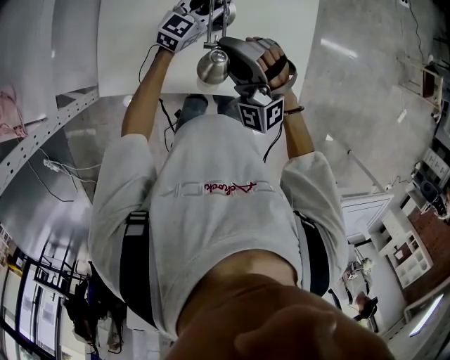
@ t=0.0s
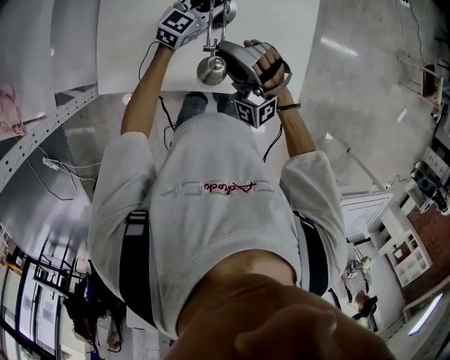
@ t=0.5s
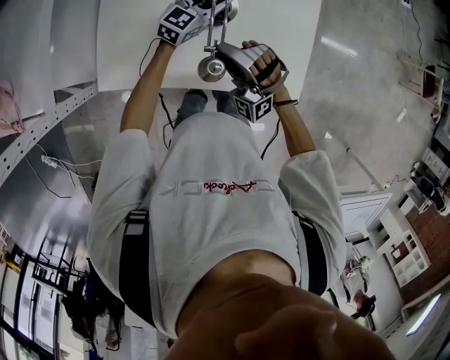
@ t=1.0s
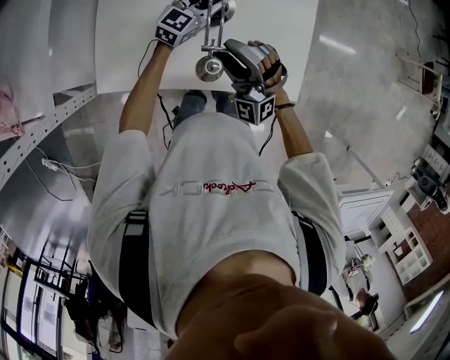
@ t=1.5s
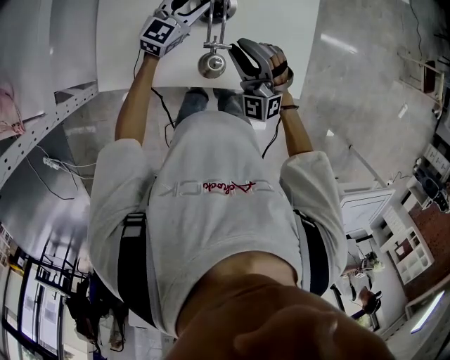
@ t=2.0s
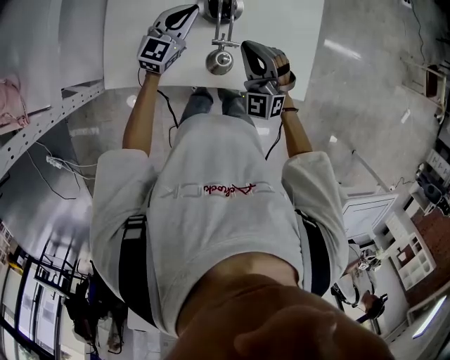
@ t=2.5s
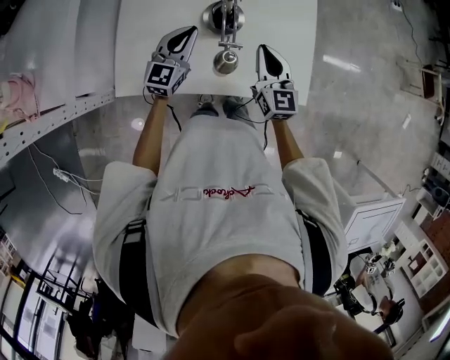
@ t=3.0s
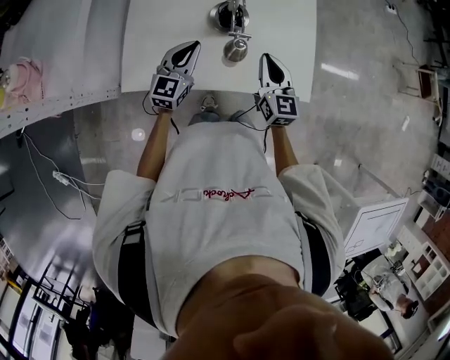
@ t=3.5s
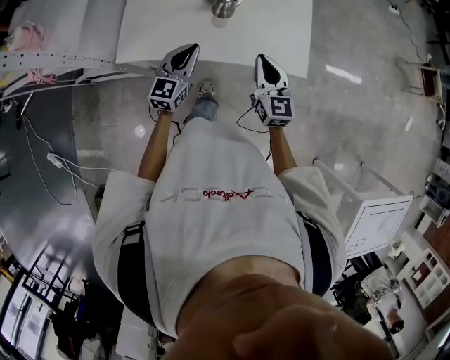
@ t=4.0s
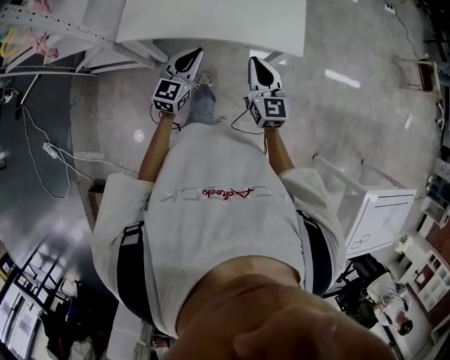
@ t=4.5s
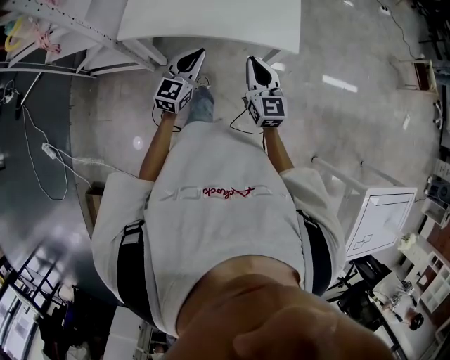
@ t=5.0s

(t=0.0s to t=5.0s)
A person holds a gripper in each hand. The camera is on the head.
t=0.0s - t=2.5s: The right gripper travels downward and to the right by roughly 10 cm, turns by approximately 20 degrees, and closes, while the left gripper is displaced to the left and backward by some 10 cm, and closes up.
t=2.5s - t=5.0s: The two grippers go roughly 30 cm backward. The right gripper rotates around the line of its fingers by about 50 degrees, clockwise from behind.

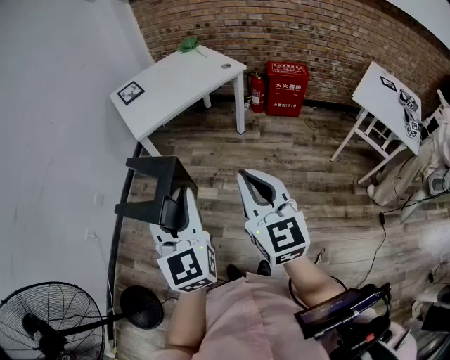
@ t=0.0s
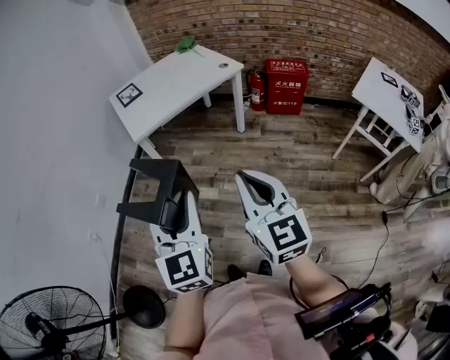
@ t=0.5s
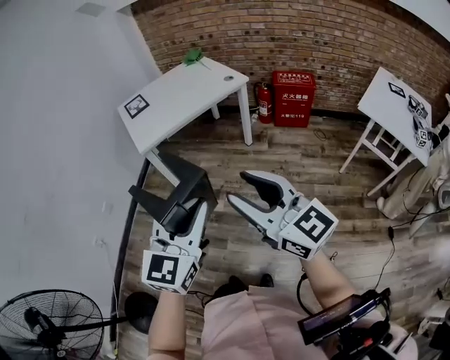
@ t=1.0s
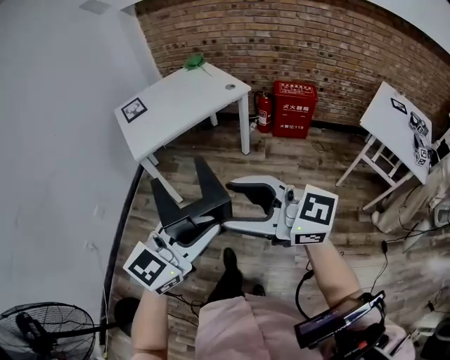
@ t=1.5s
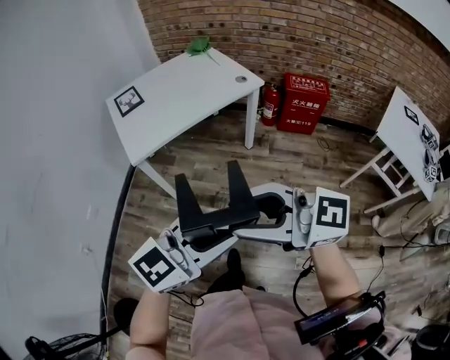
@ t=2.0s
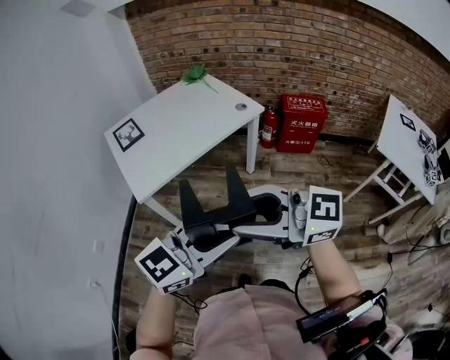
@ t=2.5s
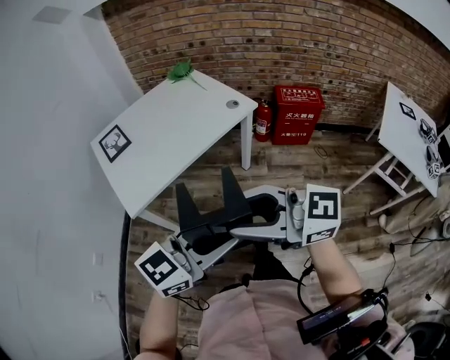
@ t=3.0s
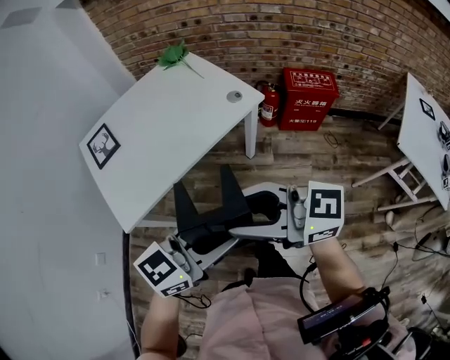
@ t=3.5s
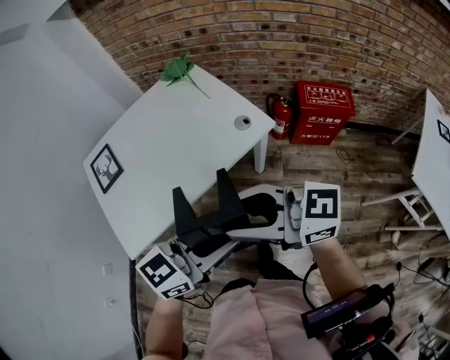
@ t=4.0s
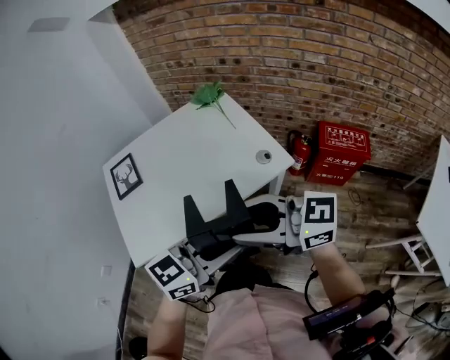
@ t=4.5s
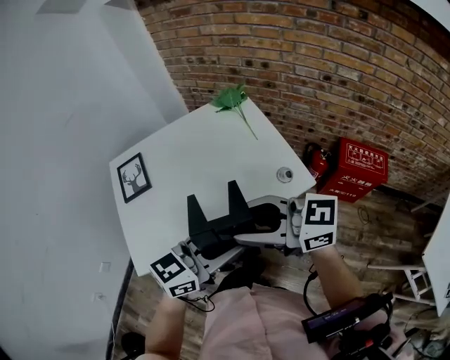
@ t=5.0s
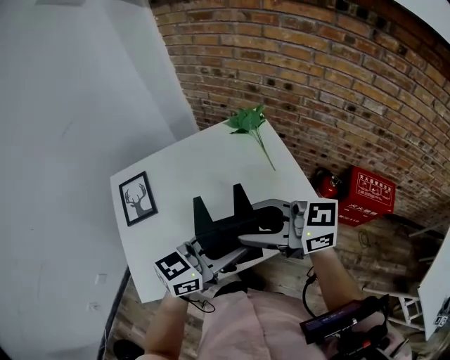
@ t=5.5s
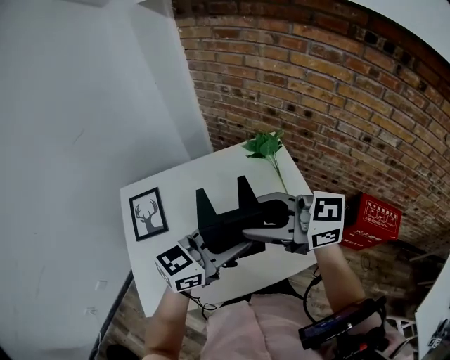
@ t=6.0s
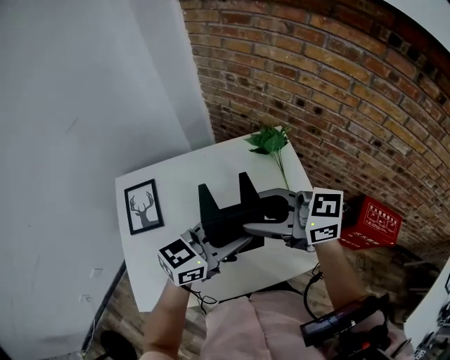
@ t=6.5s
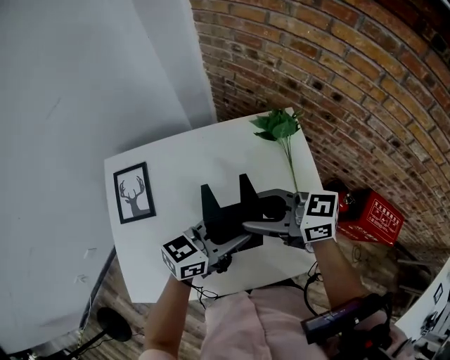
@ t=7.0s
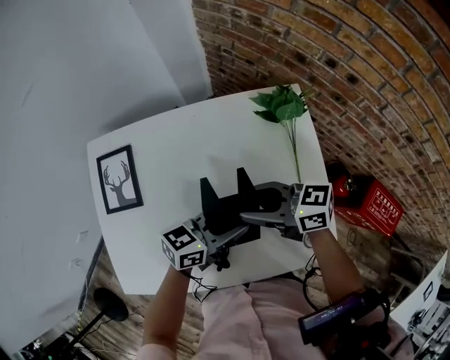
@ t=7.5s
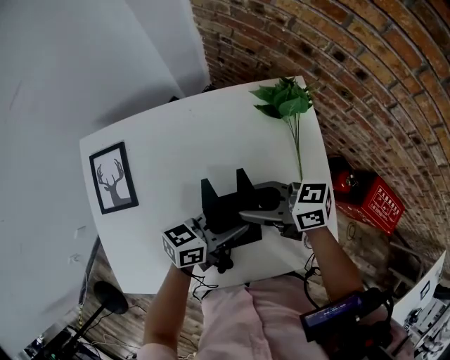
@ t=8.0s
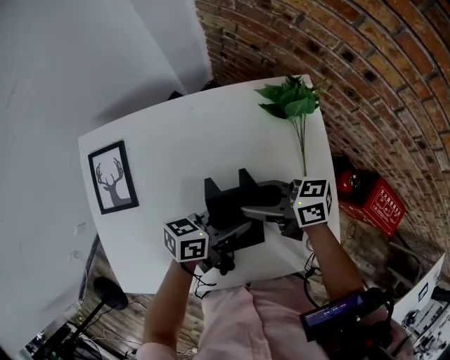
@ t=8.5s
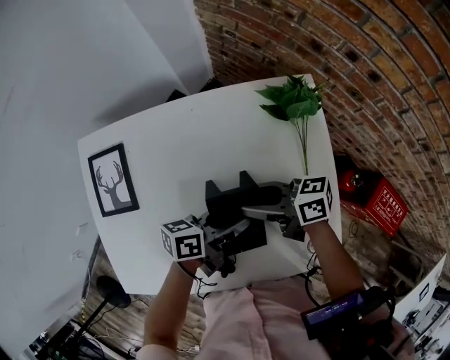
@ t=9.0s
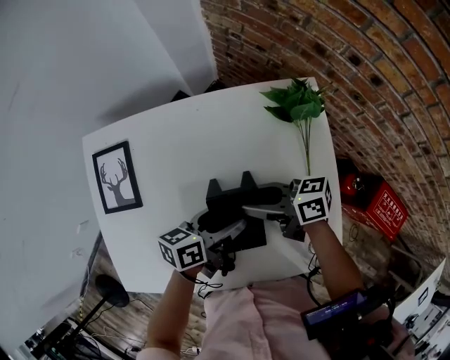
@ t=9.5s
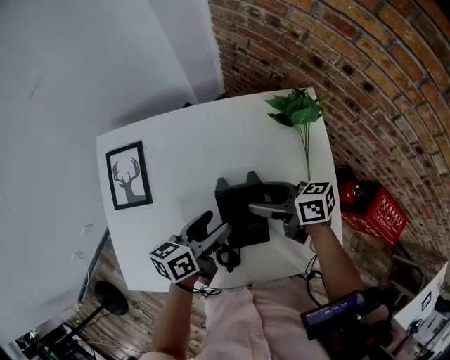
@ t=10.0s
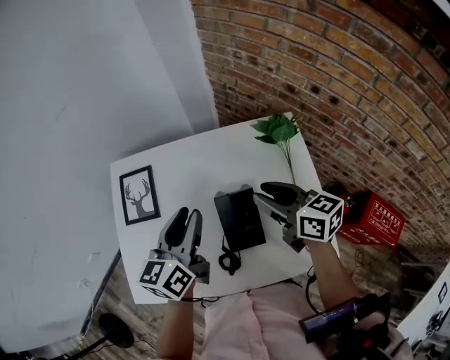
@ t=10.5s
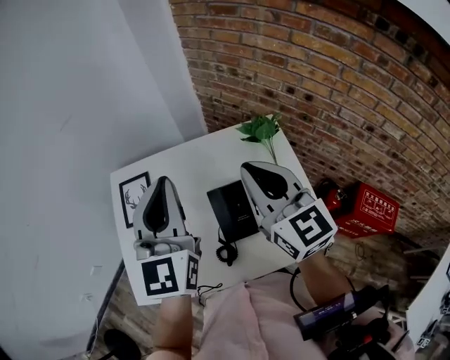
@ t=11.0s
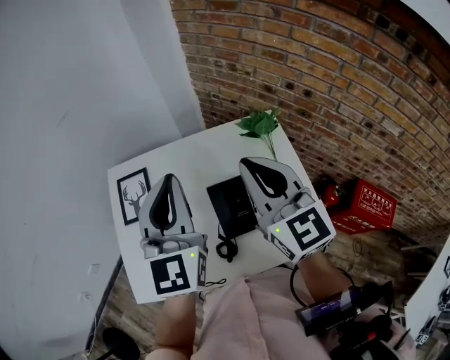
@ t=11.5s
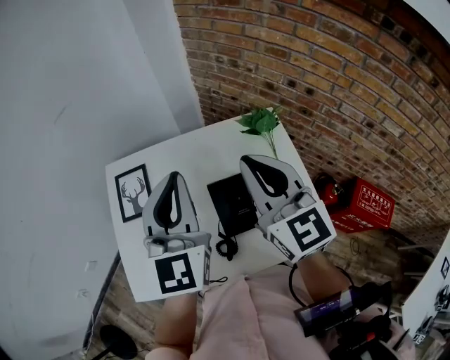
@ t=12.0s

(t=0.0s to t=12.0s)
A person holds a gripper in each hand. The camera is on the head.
t=0.0s - t=2.0s: The right gripper shifts by approximately 15 cm, swivels some 60 degrees, and opens up; the left gripper ends up some 20 cm from where it was, and changes its angle by some 60 degrees.
t=2.0s - t=4.0s: The pair of grippers is taken about 40 cm.
t=4.0s - t=6.0s: The right gripper shifts by some 35 cm. Meanwhile the left gripper moves some 35 cm.
t=6.0s - t=8.0s: Both grippers travel together downward, roughly 25 cm. The right gripper rotates approximately 40 degrees. The left gripper swivels approximately 40 degrees.
t=8.0s - t=10.0s: The right gripper opens its fingers, while the left gripper moves some 10 cm, rotates about 30 degrees, and opens up.
t=10.0s - t=12.0s: The two grippers go roughly 30 cm upward. The right gripper turns by approximately 70 degrees, and closes. The left gripper swivels about 70 degrees, and closes up.

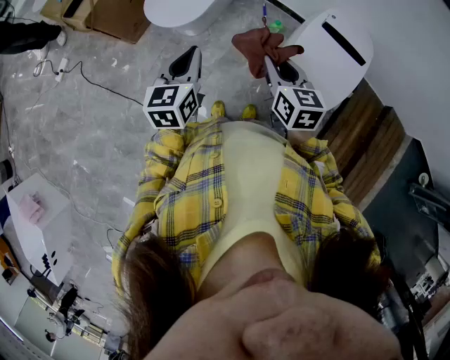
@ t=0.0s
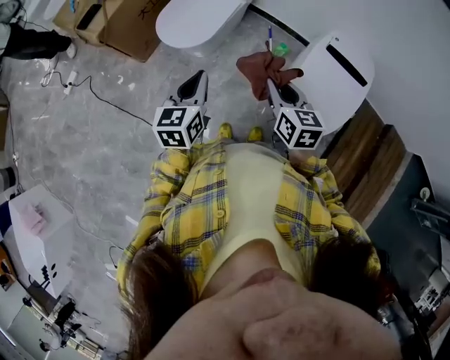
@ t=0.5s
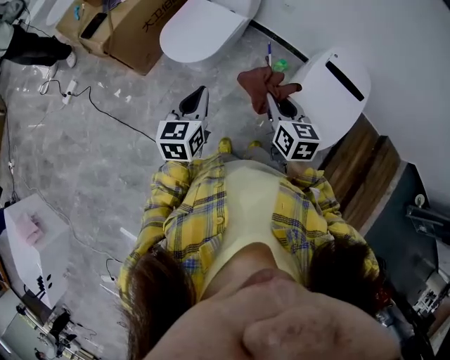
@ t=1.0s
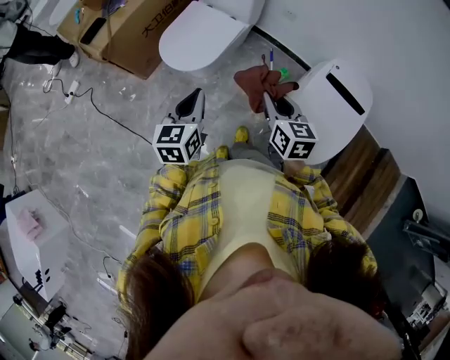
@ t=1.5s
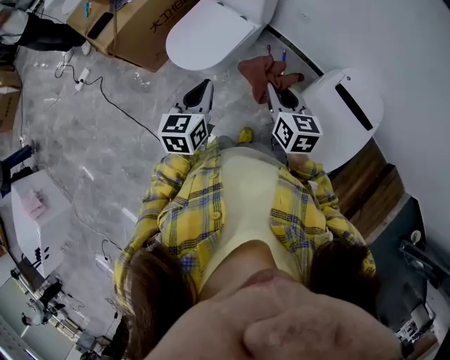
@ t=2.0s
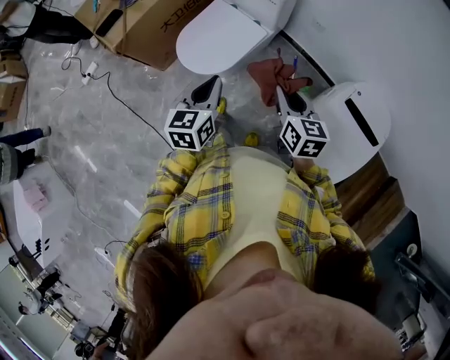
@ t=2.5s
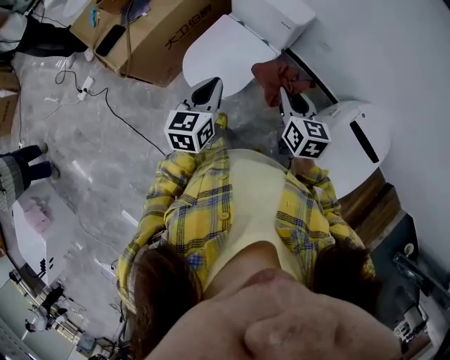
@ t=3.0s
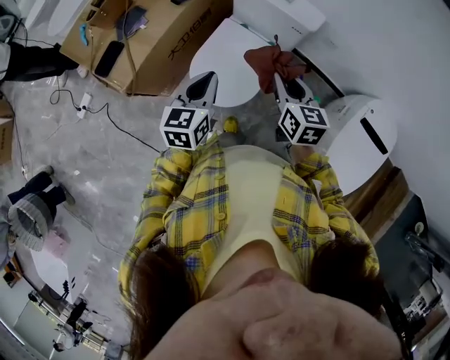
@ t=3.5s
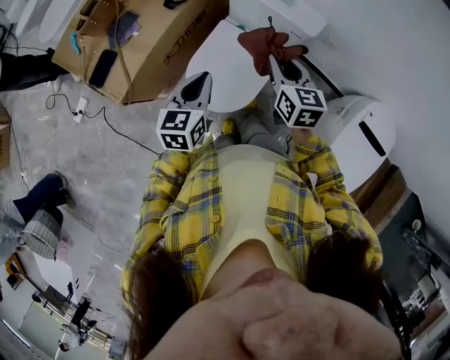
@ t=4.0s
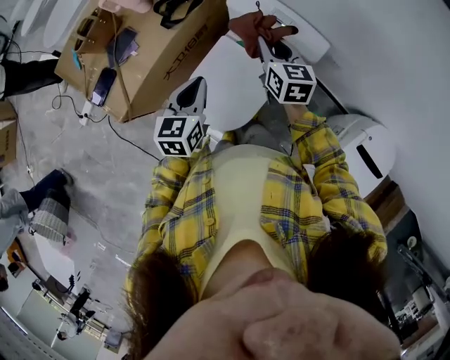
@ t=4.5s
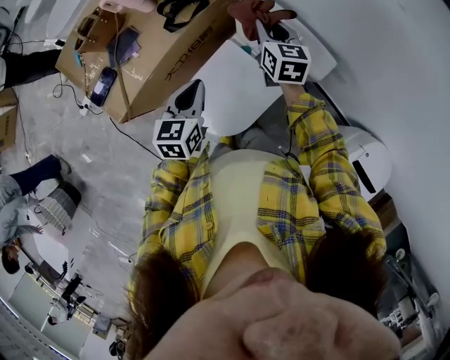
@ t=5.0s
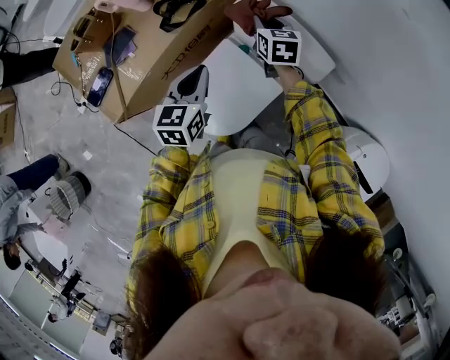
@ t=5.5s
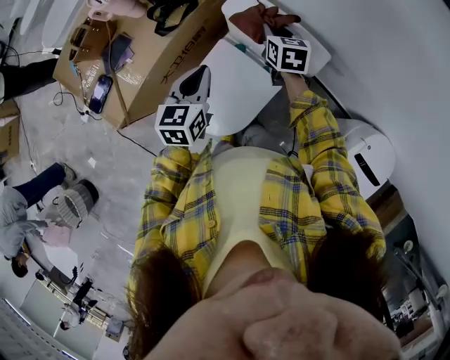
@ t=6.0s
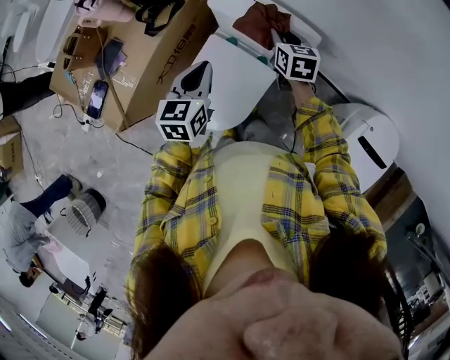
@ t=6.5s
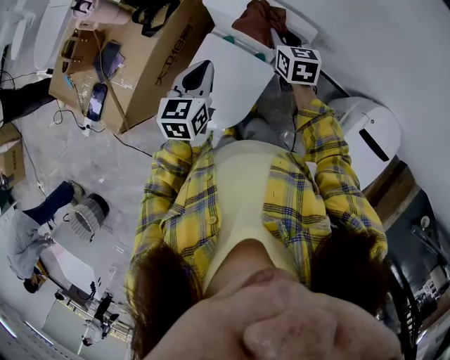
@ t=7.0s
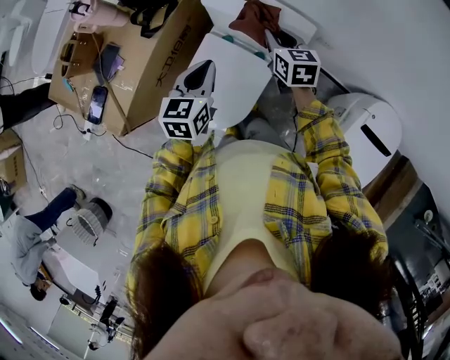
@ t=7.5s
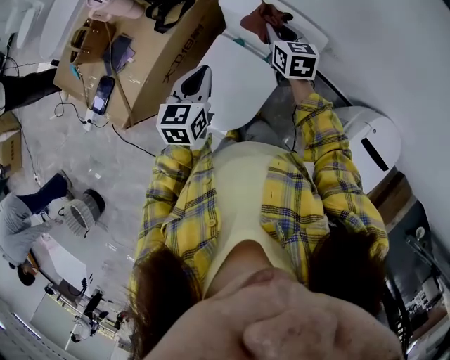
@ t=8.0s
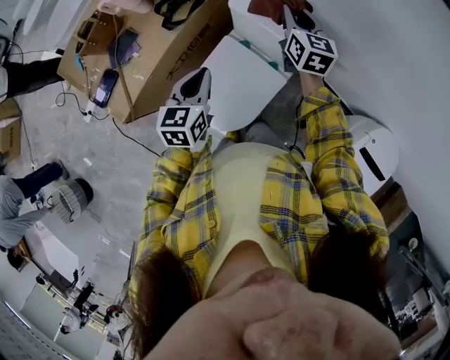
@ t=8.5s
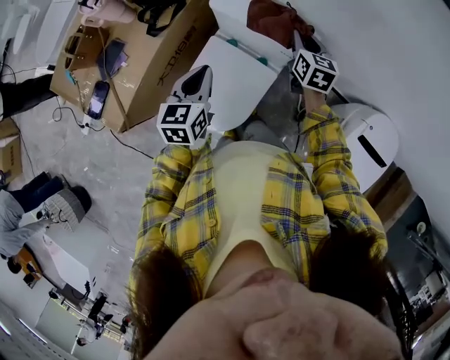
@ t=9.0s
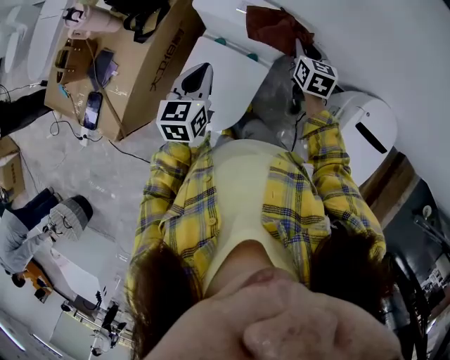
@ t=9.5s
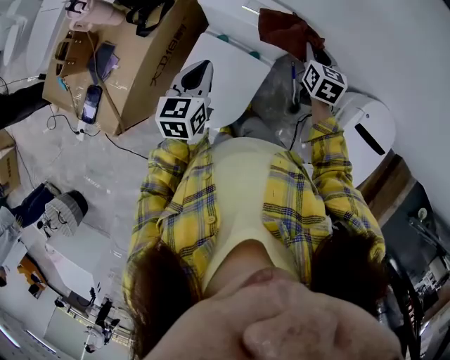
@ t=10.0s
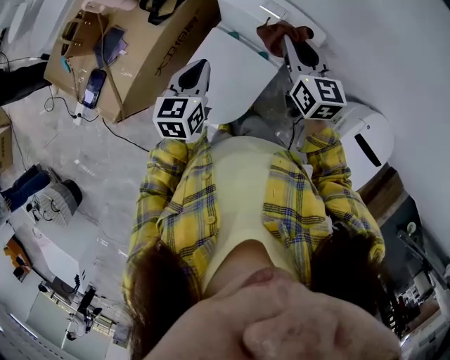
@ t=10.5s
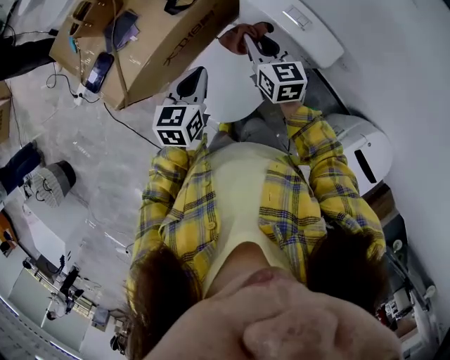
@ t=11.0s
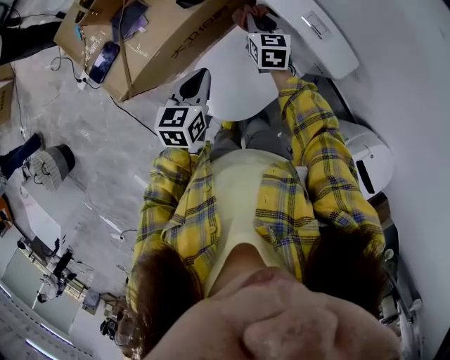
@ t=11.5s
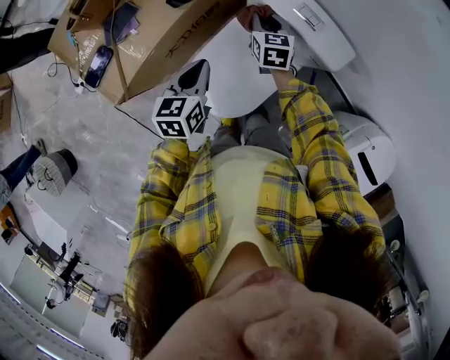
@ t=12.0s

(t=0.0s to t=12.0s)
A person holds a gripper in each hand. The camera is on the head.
t=0.0s - t=2.0s: The two grippers go approximately 15 cm forward.
t=2.0s - t=4.0s: Both grippers travel together forward and to the left, approximately 35 cm.
t=4.0s - t=6.0s: The left gripper goes roughly 15 cm forward. The right gripper travels forward by approximately 25 cm.
t=8.0s - t=10.0s: The right gripper travels to the right by approximately 15 cm, and turns by about 20 degrees.
t=10.0s - t=12.0s: The left gripper ends up approximately 10 cm from where it was. Meanwhile the right gripper moves approximately 30 cm, and swivels approximately 30 degrees.
